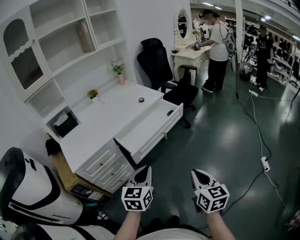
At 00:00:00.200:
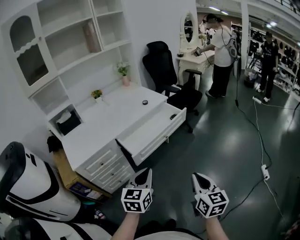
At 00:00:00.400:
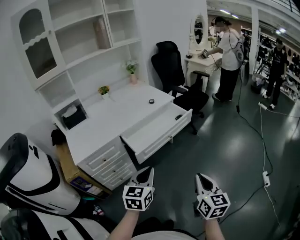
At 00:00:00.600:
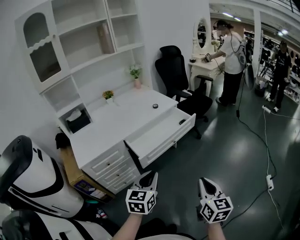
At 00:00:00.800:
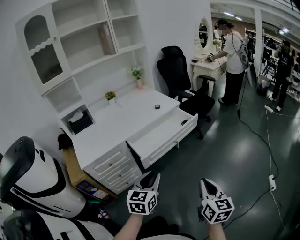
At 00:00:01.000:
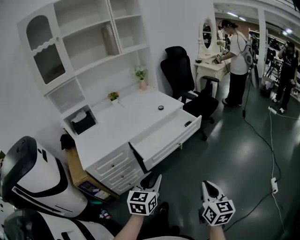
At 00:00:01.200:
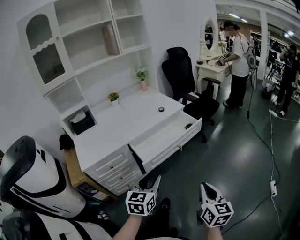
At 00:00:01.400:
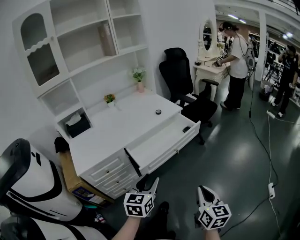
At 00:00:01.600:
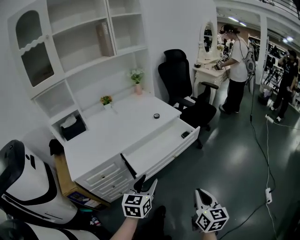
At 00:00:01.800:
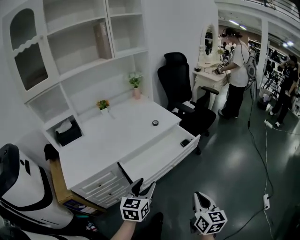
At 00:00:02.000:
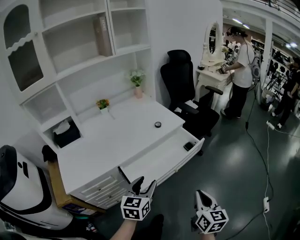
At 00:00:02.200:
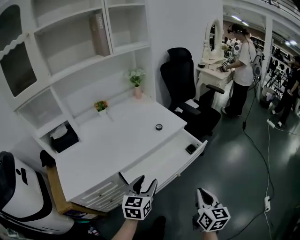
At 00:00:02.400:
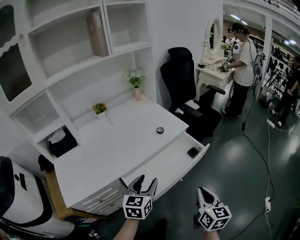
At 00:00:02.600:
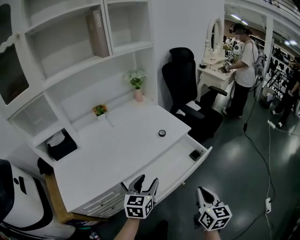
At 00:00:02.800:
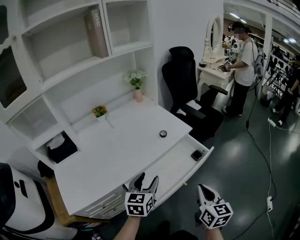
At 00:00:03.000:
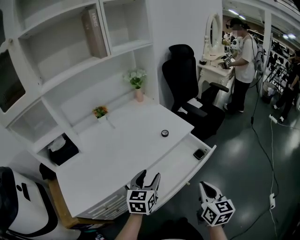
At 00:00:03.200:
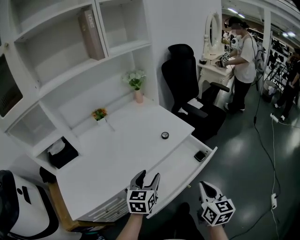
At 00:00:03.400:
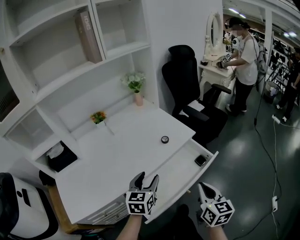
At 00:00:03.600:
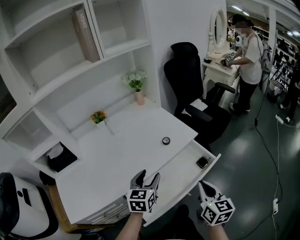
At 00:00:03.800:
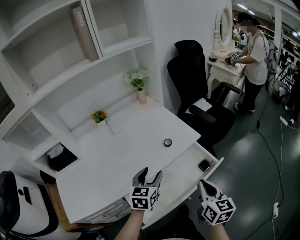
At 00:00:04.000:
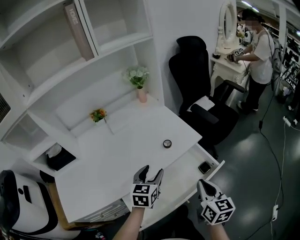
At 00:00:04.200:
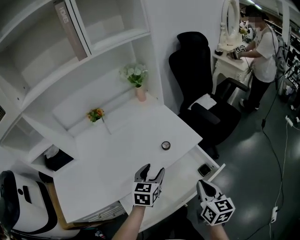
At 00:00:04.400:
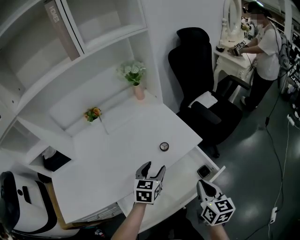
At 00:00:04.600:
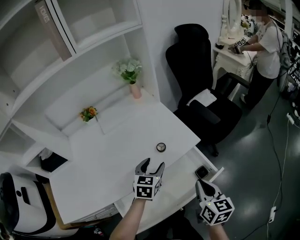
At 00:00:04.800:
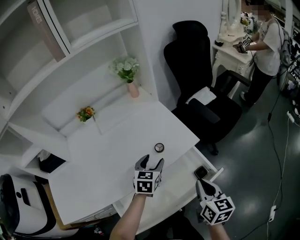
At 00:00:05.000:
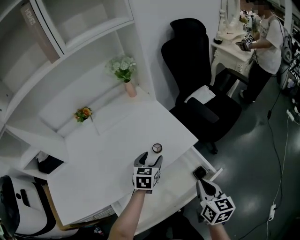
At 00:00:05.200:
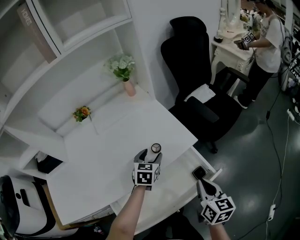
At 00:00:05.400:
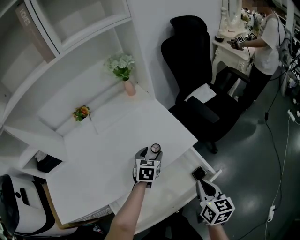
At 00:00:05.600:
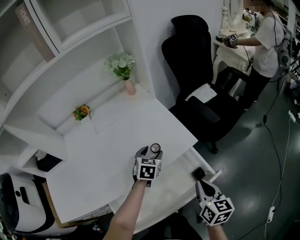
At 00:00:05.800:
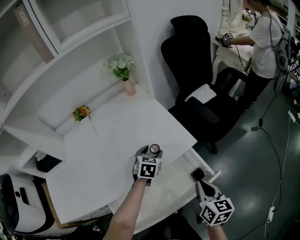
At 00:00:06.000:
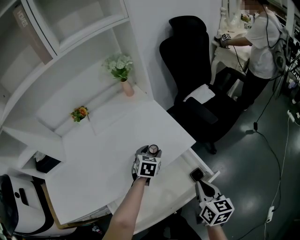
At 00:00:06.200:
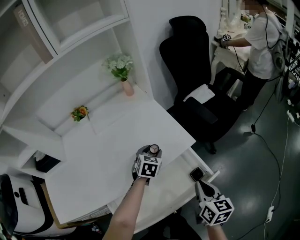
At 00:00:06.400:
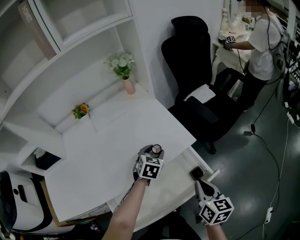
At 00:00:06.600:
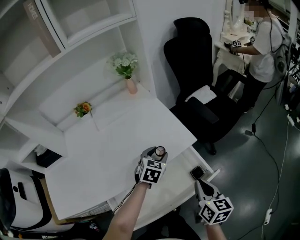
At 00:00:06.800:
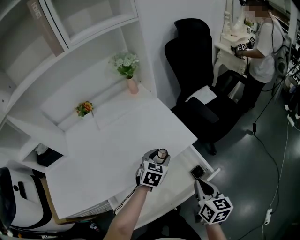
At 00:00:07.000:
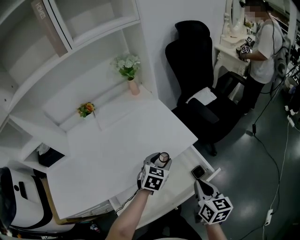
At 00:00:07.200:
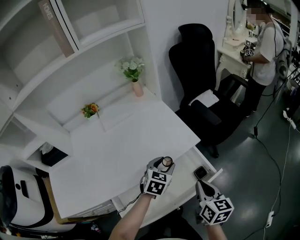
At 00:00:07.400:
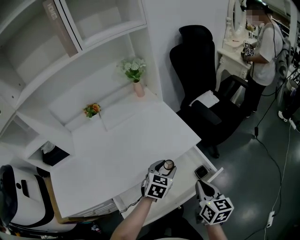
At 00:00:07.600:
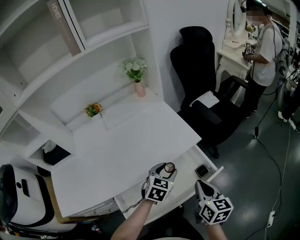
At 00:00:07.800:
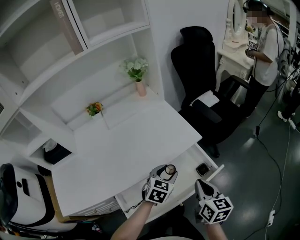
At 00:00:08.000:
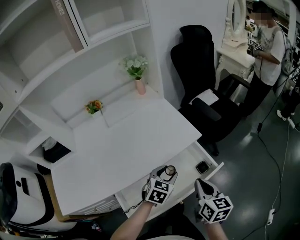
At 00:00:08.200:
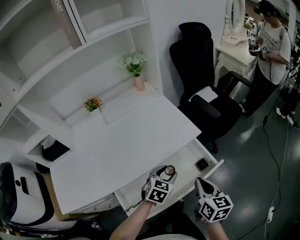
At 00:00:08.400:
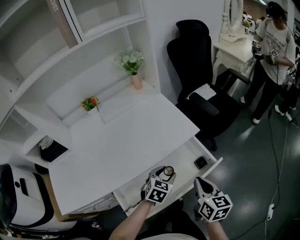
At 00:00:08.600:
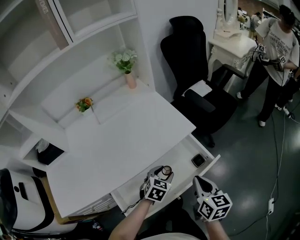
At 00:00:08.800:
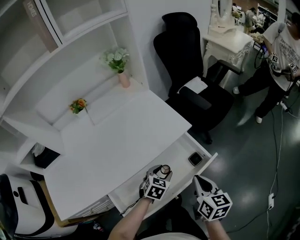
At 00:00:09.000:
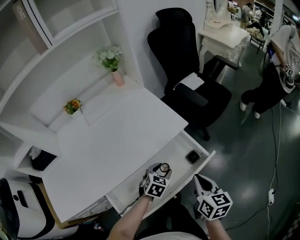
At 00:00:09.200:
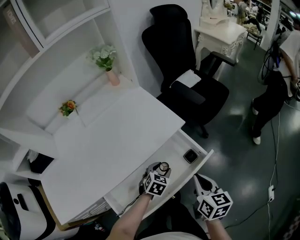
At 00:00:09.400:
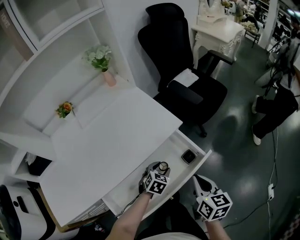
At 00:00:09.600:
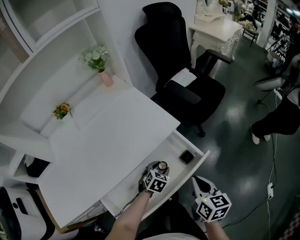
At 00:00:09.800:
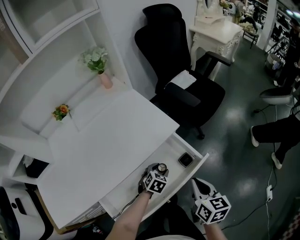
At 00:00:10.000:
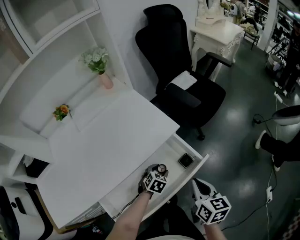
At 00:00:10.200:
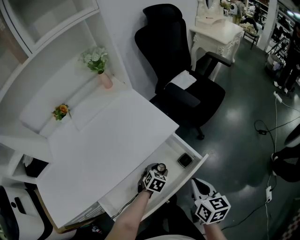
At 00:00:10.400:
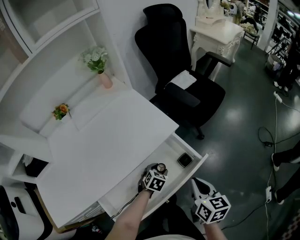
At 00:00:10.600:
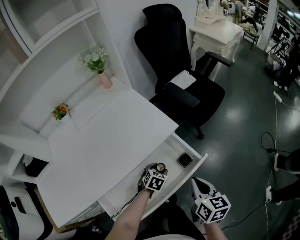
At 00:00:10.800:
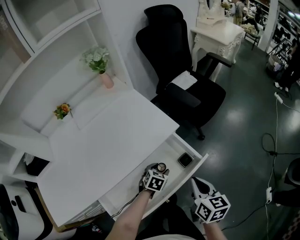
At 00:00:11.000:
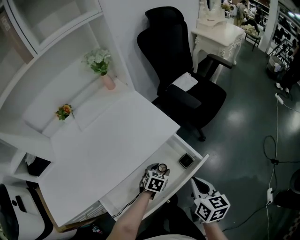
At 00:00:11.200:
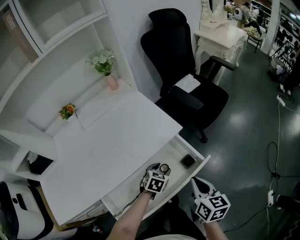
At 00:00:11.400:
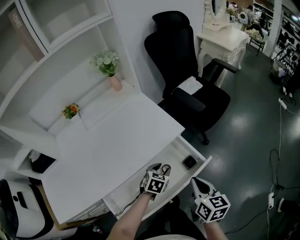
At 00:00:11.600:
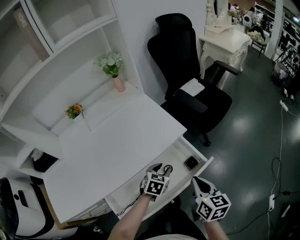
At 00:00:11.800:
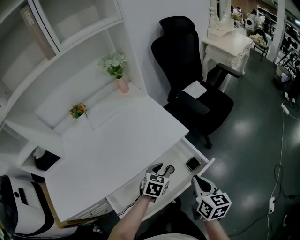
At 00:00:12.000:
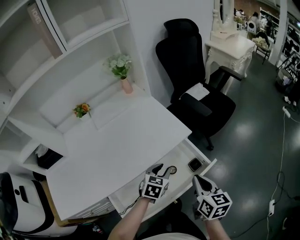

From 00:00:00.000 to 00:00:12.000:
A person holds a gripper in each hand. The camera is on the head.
From 00:00:00.000 to 00:00:01.600: The grippers both shift forward by approximately 10 cm. The left gripper opens up.
From 00:00:01.600 to 00:00:03.000: Both grippers move forward, approximately 25 cm.
From 00:00:03.000 to 00:00:04.400: The two grippers go roughly 20 cm forward.
From 00:00:04.400 to 00:00:06.000: The left gripper travels forward and downward by about 15 cm, while the right gripper moves about 5 cm.
From 00:00:06.000 to 00:00:07.600: The right gripper moves about 5 cm. The left gripper is displaced backward by roughly 15 cm.
From 00:00:07.600 to 00:00:09.000: The left gripper travels downward by roughly 10 cm.
From 00:00:09.000 to 00:00:10.400: The left gripper is displaced downward by about 5 cm.
From 00:00:10.400 to 00:00:12.000: The left gripper goes roughly 15 cm upward.

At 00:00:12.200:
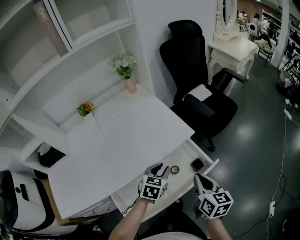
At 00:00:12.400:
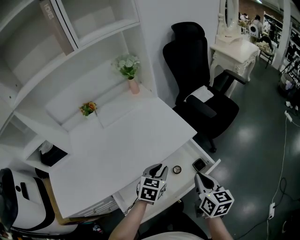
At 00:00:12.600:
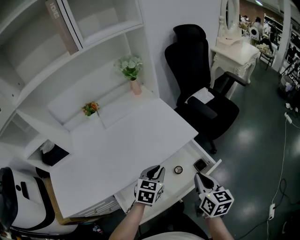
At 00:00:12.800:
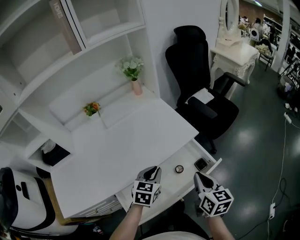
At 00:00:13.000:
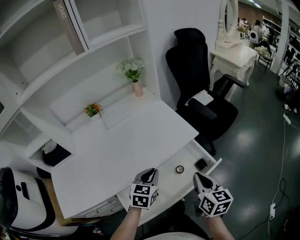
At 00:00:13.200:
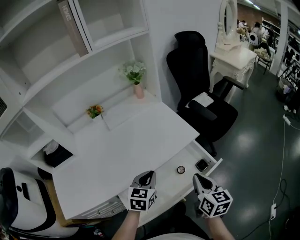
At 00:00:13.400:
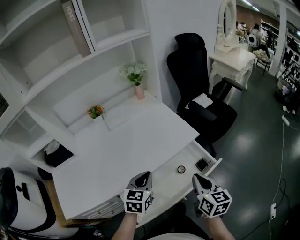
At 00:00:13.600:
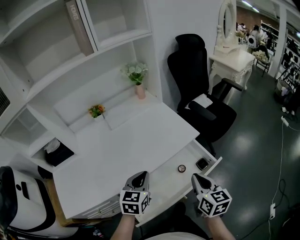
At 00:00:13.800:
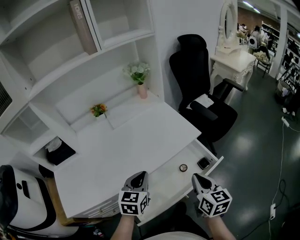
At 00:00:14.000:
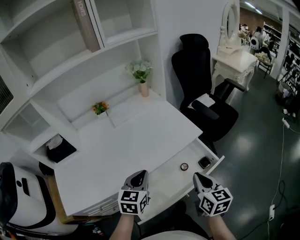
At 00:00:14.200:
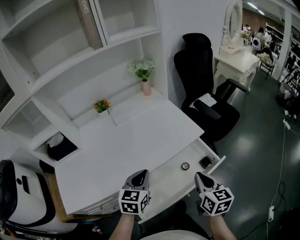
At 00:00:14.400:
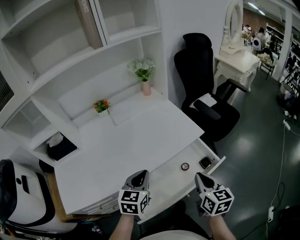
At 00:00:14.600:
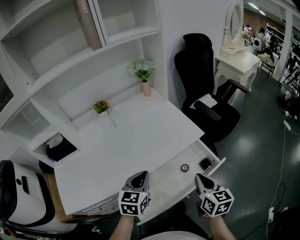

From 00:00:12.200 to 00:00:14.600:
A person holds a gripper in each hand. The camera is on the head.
From 00:00:12.200 to 00:00:13.400: The right gripper heads to the left, covering approximately 5 cm, while the left gripper is displaced to the left, upward and backward by about 15 cm, and closes its fingers.
From 00:00:13.400 to 00:00:14.600: The grippers move only a little.

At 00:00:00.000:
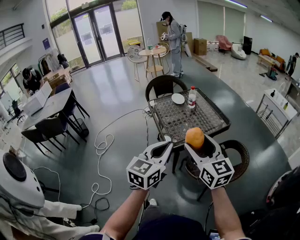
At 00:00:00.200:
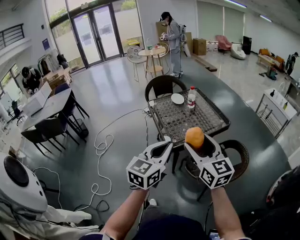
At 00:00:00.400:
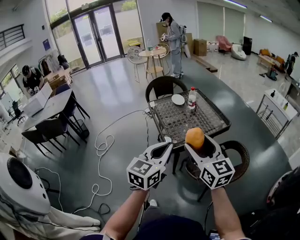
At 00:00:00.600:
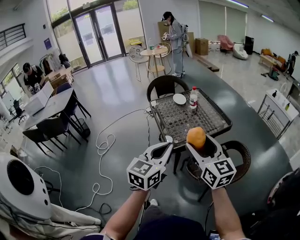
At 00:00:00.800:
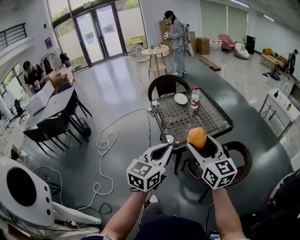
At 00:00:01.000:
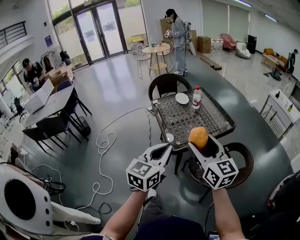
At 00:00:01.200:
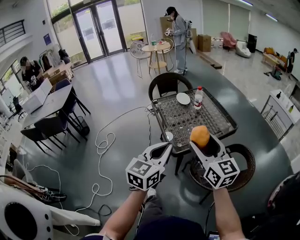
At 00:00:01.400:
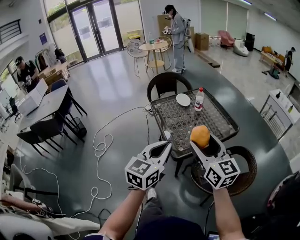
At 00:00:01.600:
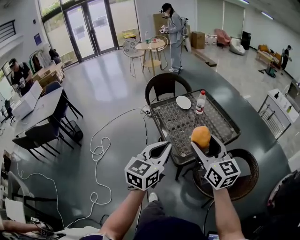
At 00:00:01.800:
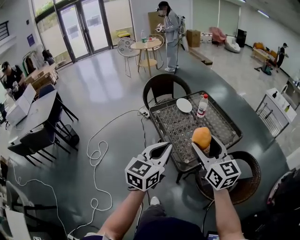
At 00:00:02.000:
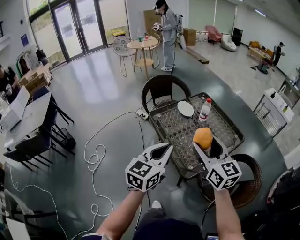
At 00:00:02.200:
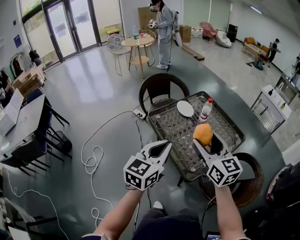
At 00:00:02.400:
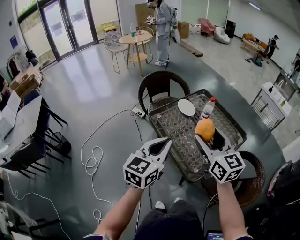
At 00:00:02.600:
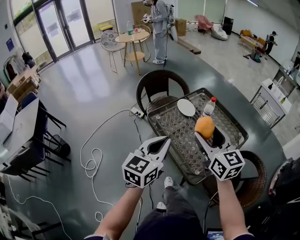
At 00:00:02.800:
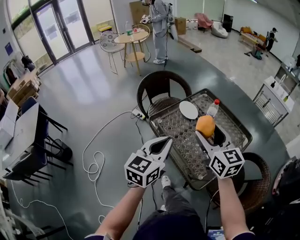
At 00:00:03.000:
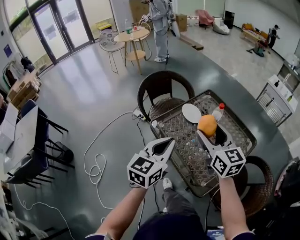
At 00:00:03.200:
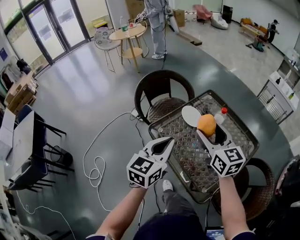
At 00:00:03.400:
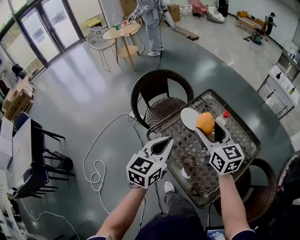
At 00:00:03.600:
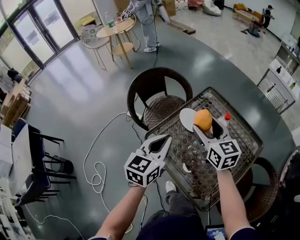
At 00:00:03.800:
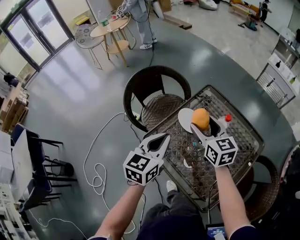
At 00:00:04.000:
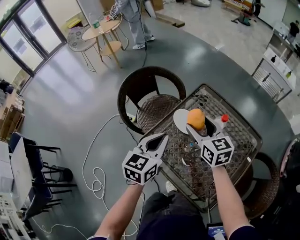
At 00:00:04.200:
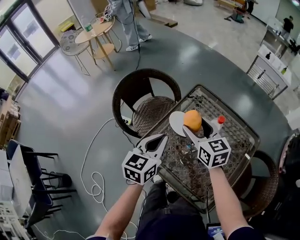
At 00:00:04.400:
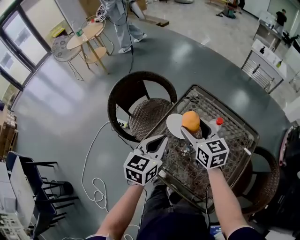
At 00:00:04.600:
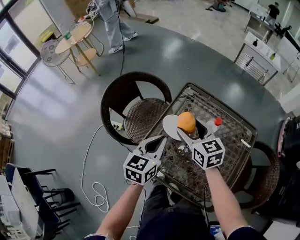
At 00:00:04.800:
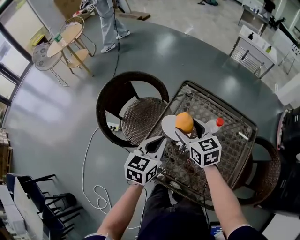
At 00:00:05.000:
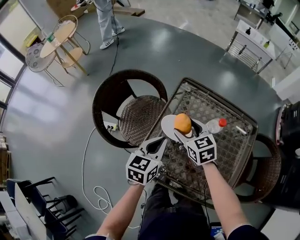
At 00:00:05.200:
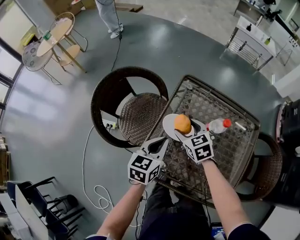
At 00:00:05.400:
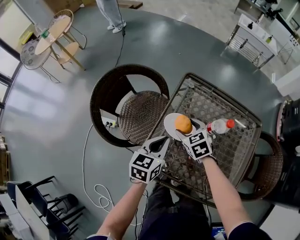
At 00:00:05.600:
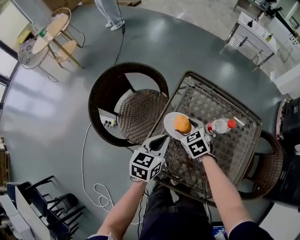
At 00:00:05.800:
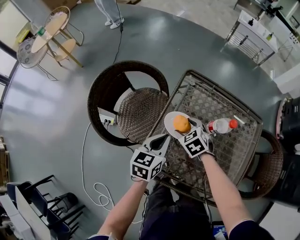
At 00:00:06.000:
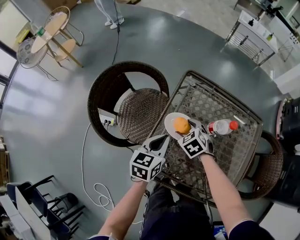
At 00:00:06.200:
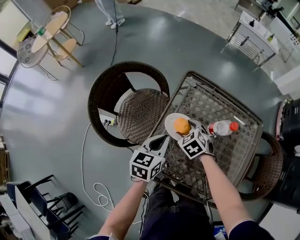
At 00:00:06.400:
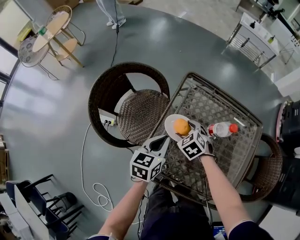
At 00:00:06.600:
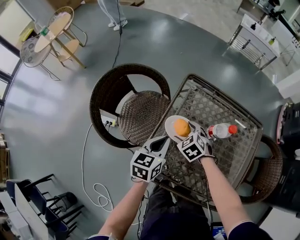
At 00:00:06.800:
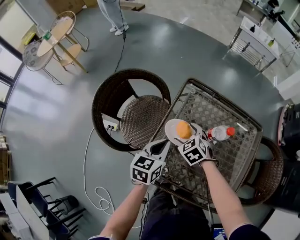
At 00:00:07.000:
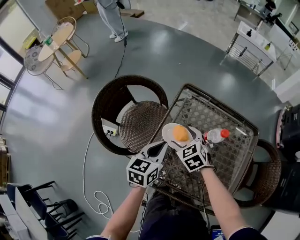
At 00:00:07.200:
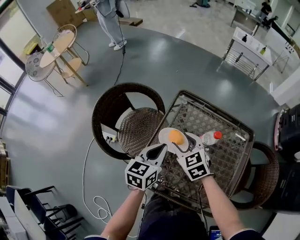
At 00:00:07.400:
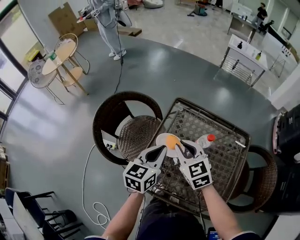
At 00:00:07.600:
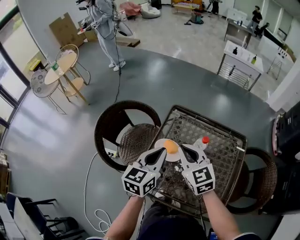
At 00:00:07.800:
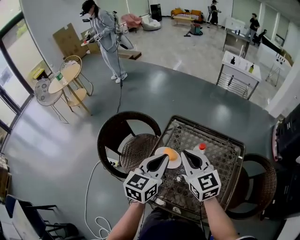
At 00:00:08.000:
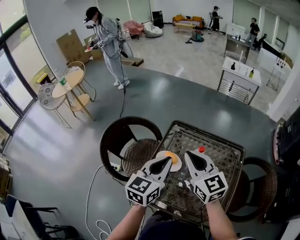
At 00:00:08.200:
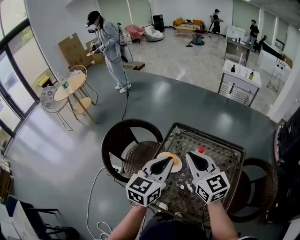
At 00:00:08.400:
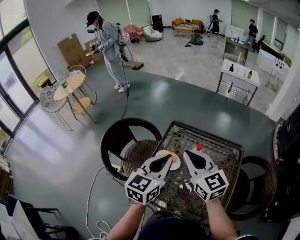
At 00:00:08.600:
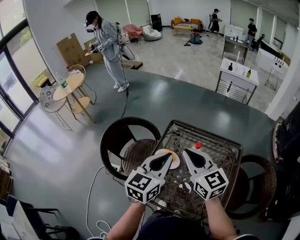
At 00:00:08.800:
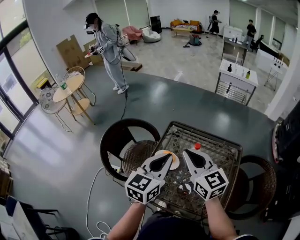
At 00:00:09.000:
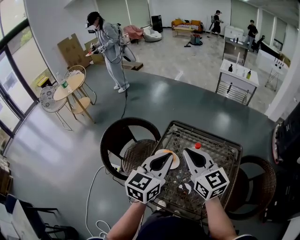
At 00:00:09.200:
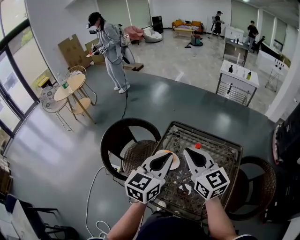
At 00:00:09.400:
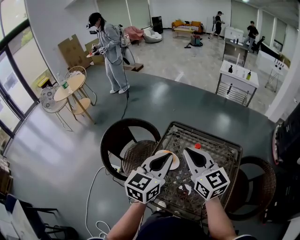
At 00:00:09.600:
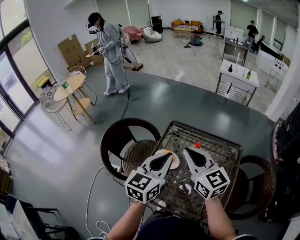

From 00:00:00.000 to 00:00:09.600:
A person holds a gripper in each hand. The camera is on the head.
From 00:00:00.000 to 00:00:01.600: Both grippers travel together forward and to the left, roughly 15 cm.
From 00:00:01.600 to 00:00:03.200: The right gripper goes some 35 cm forward, while the left gripper shifts roughly 35 cm forward and to the left.
From 00:00:03.200 to 00:00:04.800: The two grippers go roughly 25 cm forward and downward. The left gripper turns by approximately 20 degrees. Meanwhile the right gripper changes its angle by about 20 degrees.
From 00:00:04.800 to 00:00:06.400: The left gripper is displaced downward by about 10 cm; the right gripper is displaced downward by about 15 cm, and tilts its fingers about 30 degrees downward.
From 00:00:06.400 to 00:00:08.000: Both grippers travel together upward, about 30 cm. The left gripper changes its angle by some 20 degrees; the right gripper points its fingers roughly 50 degrees further upward, and closes.
From 00:00:08.000 to 00:00:09.600: The grippers stay close to where they were, moving slightly.
